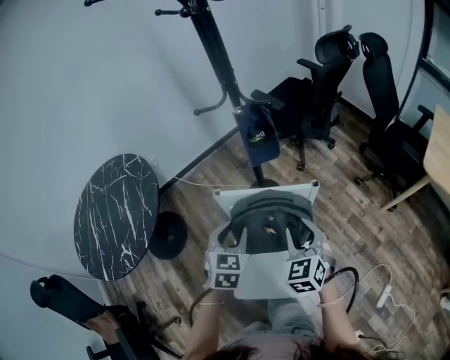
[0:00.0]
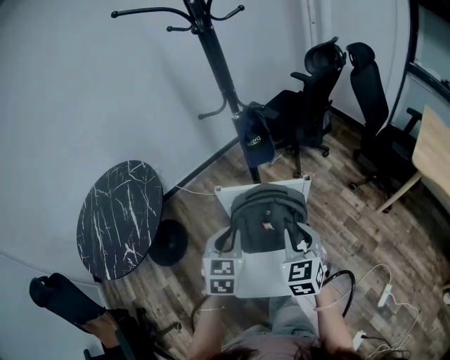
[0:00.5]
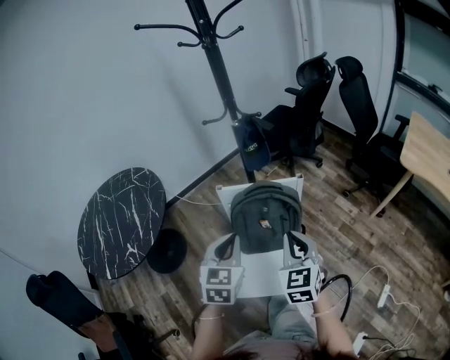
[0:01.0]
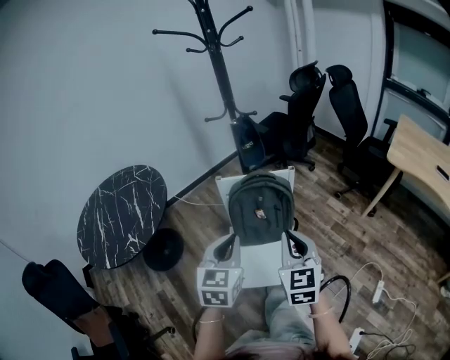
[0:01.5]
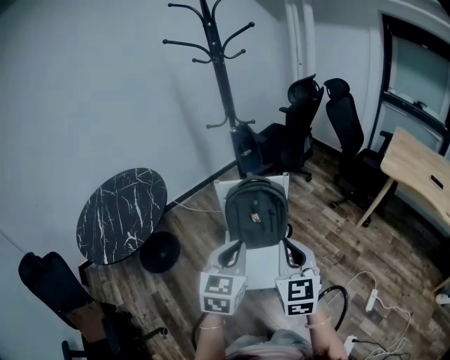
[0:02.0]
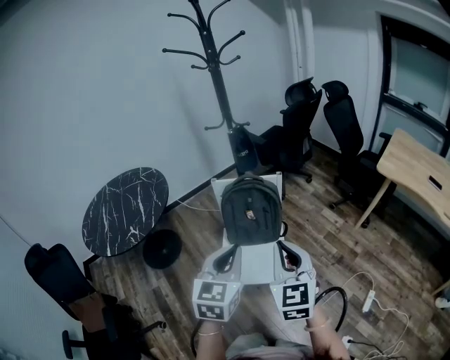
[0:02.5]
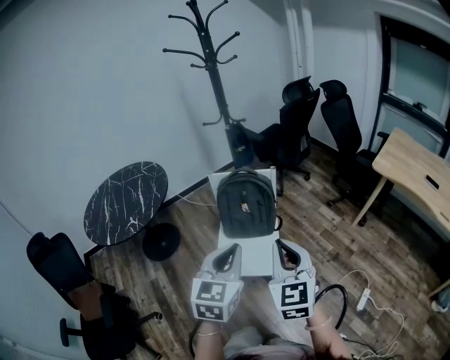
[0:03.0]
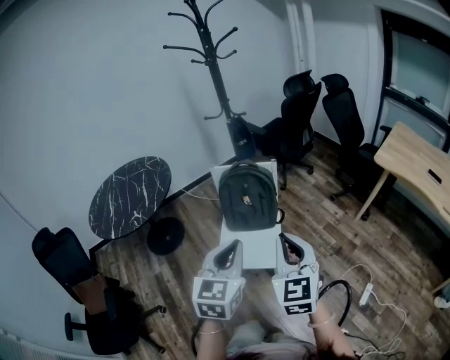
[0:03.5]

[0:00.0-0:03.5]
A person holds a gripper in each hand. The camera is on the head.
0:00.0 to 0:02.0: Both grippers travel together backward and upward, approximately 35 cm. The left gripper closes its fingers, while the right gripper turns by some 30 degrees, and closes up.
0:02.0 to 0:03.5: The two grippers go roughly 15 cm backward and to the right.

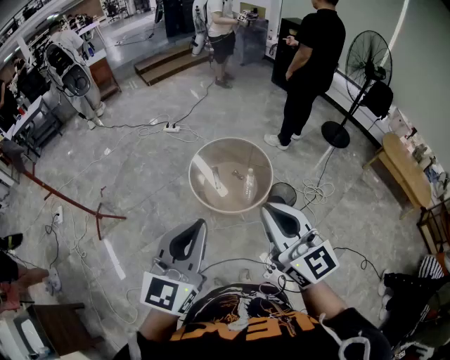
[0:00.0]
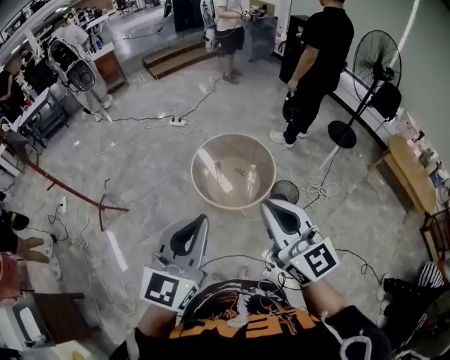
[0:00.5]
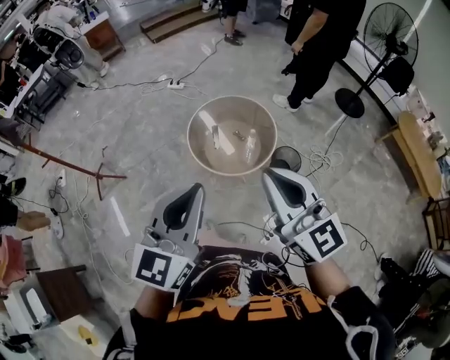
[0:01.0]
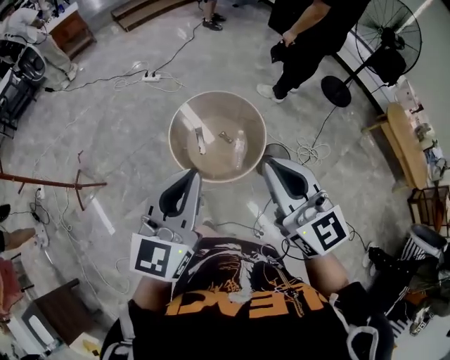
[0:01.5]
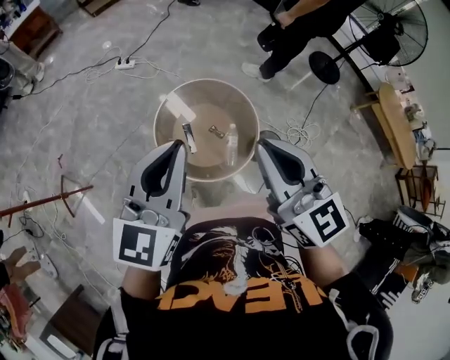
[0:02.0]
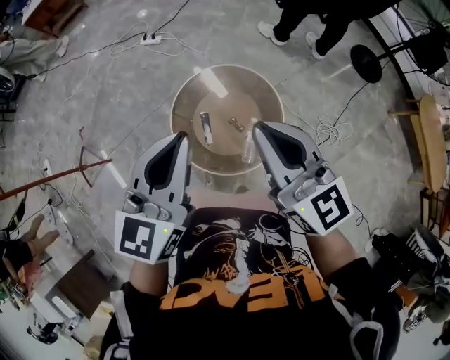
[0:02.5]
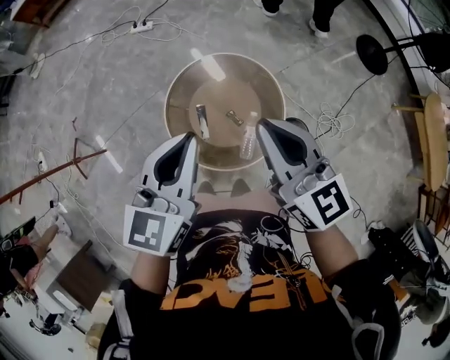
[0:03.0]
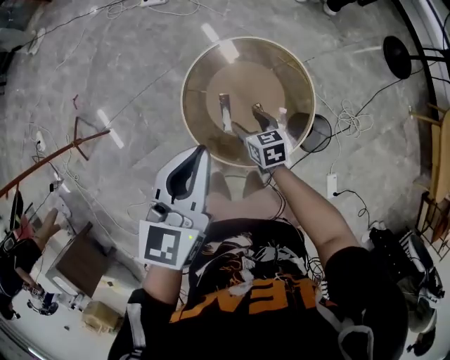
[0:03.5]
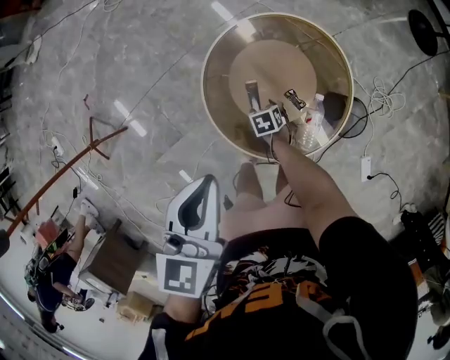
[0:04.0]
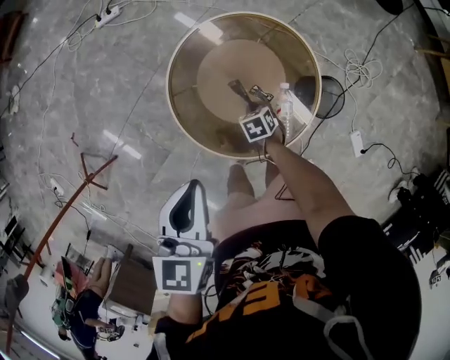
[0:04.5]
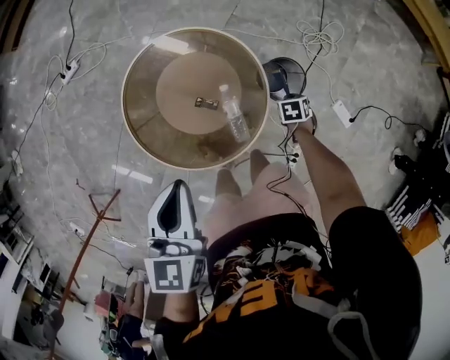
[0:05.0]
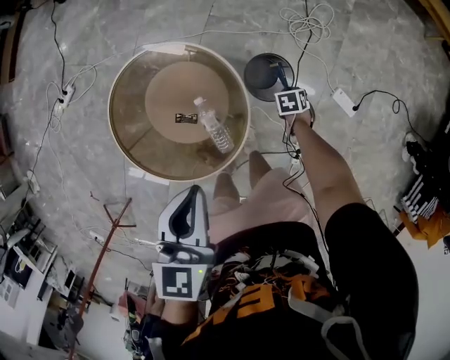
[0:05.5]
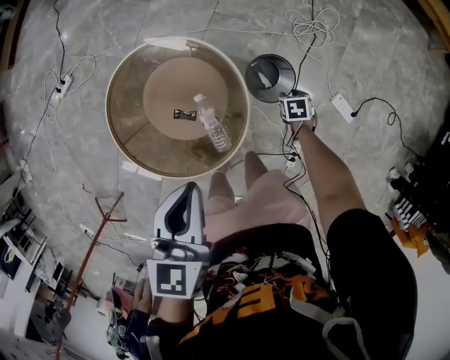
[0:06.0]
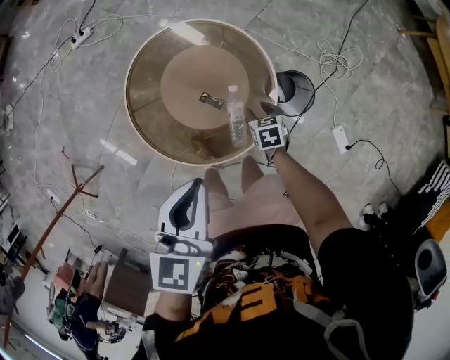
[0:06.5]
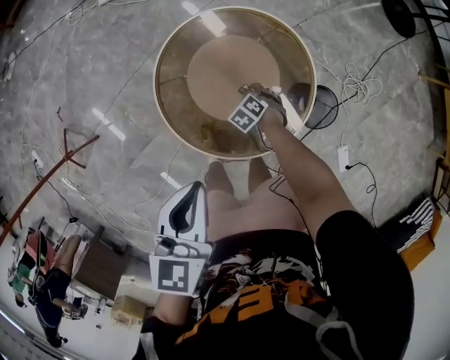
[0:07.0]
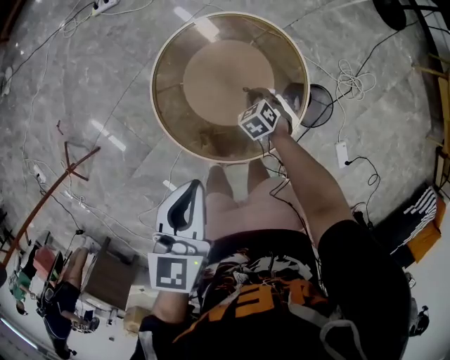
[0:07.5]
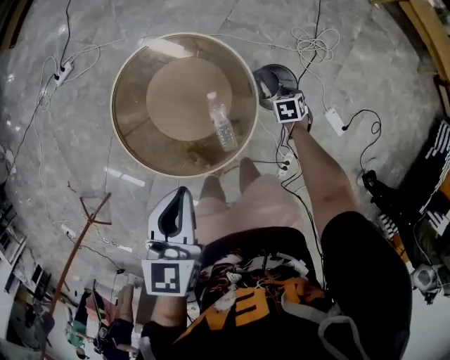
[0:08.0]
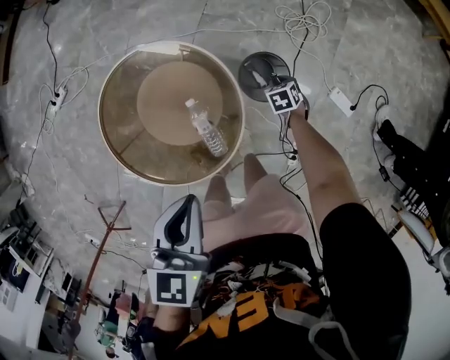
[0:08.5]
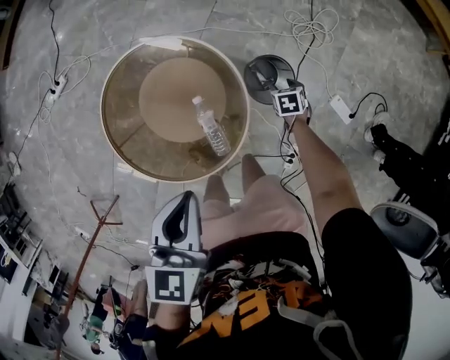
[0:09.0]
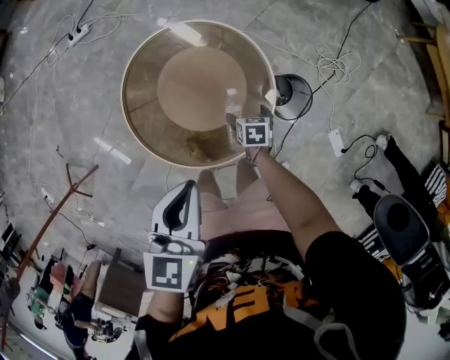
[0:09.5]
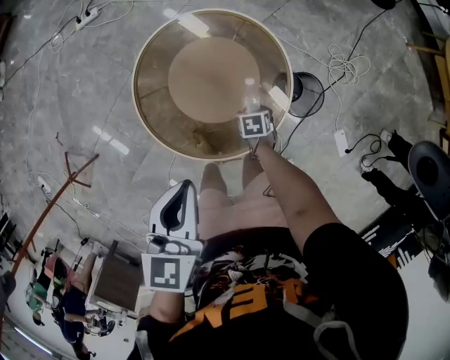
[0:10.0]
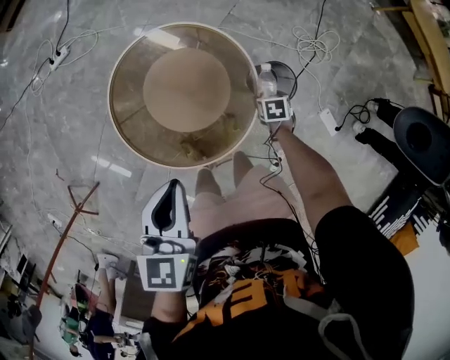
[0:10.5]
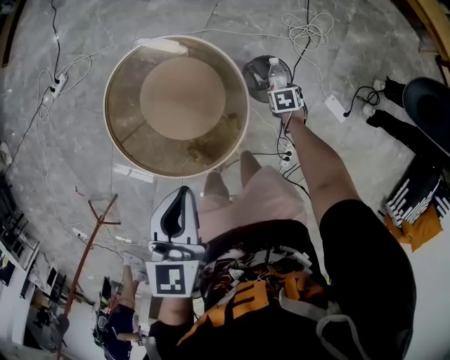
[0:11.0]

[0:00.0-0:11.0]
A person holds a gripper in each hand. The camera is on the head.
0:00.0 to 0:02.0: Both grippers move forward, approximately 40 cm.
0:02.0 to 0:03.5: The right gripper goes about 50 cm downward, points its fingers approximately 40 degrees further downward, and opens its fingers, while the left gripper moves downward and forward, some 25 cm, and changes its angle by roughly 30 degrees.
0:03.5 to 0:05.5: The right gripper goes up and down, approximately 25 cm each way, reversing 2 times, angles its fingers downward, by about 40 degrees, and closes up; the left gripper ends up about 30 cm from where it was, and changes its angle by about 40 degrees.
0:05.5 to 0:07.5: The right gripper swings up and down, roughly 5 cm each way, with 2 reversals, and twists approximately 50 degrees counterclockwise, seen from behind. The left gripper changes place by about 25 cm, and turns by approximately 30 degrees.
0:07.5 to 0:09.0: The left gripper changes place by roughly 25 cm, and swivels some 20 degrees, while the right gripper shifts by approximately 40 cm, rotates around the line of its fingers by some 50 degrees, clockwise from behind, and opens.

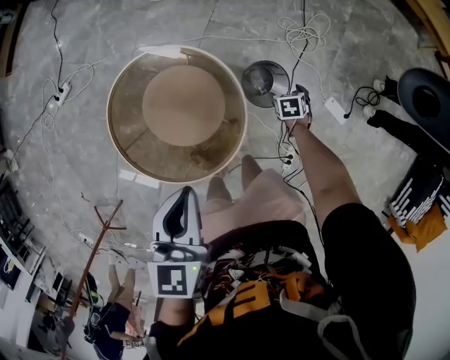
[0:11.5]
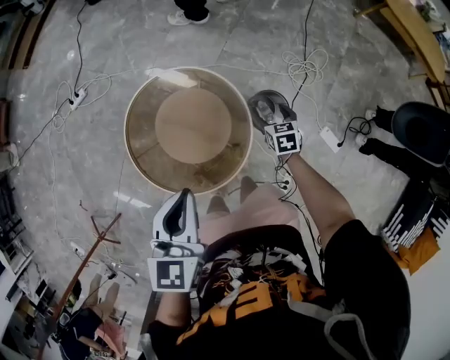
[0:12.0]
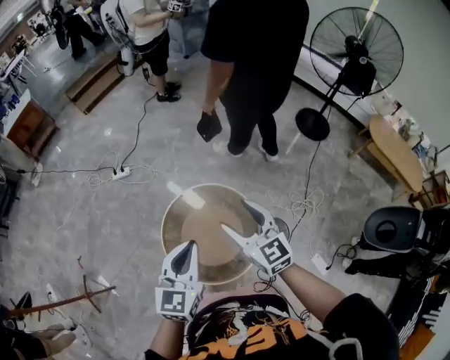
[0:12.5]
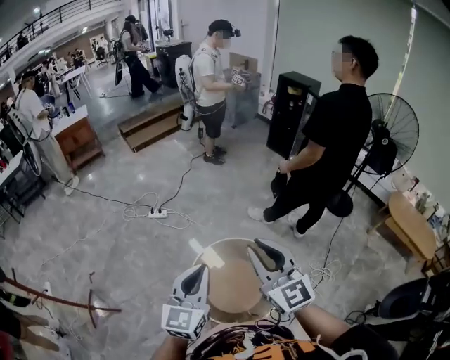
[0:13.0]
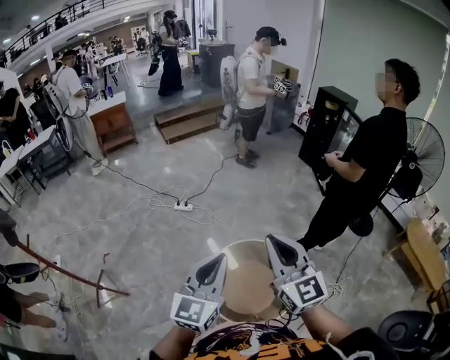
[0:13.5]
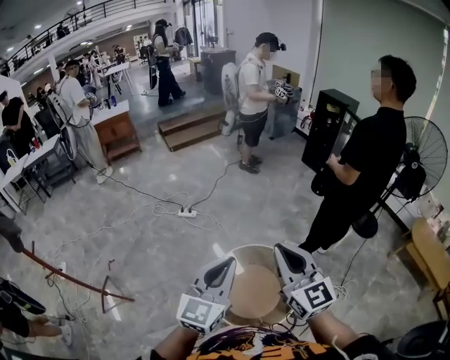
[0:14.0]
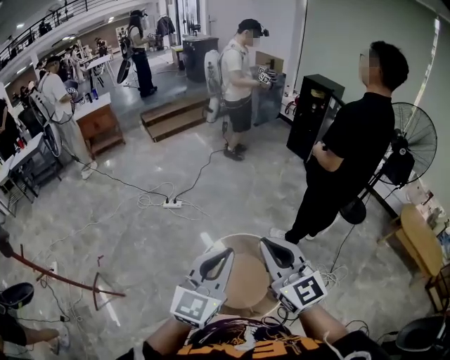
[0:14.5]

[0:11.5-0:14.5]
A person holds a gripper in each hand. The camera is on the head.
0:11.5 to 0:13.0: The right gripper heads upward, covering roughly 80 cm, tilts its fingers approximately 80 degrees upward, and closes its fingers. Meanwhile the left gripper goes approximately 30 cm upward, and tips its fingers upward by roughly 40 degrees.
0:13.0 to 0:14.5: The left gripper shifts approximately 5 cm upward.

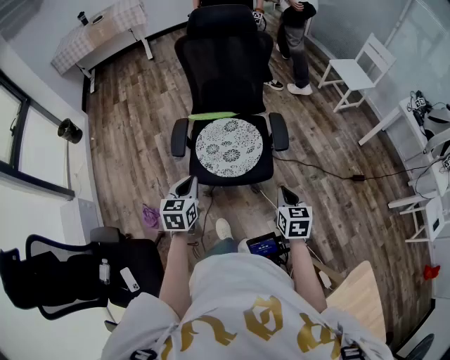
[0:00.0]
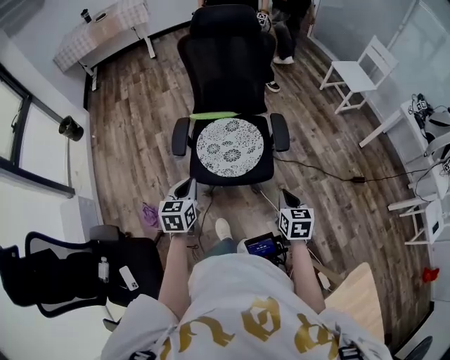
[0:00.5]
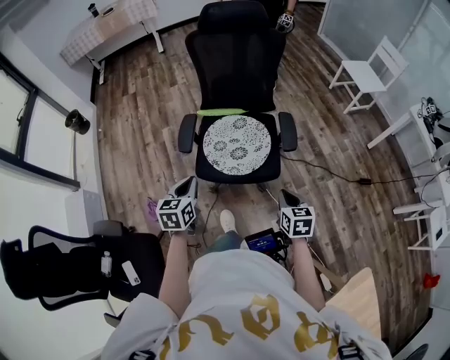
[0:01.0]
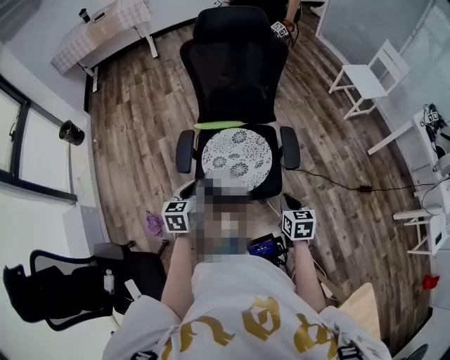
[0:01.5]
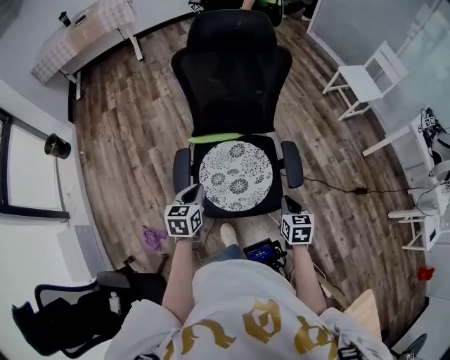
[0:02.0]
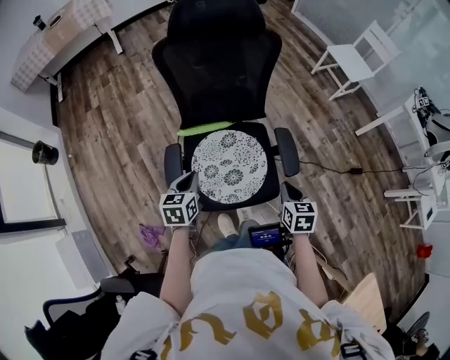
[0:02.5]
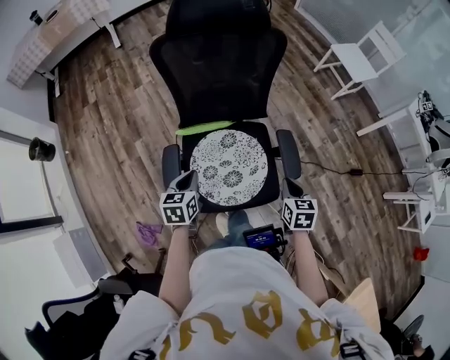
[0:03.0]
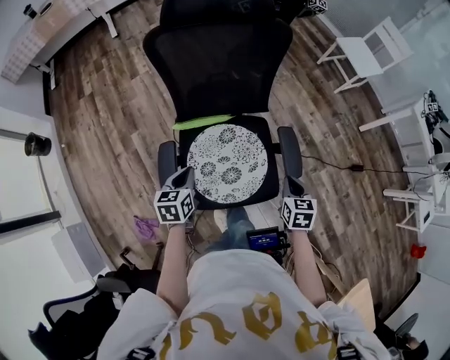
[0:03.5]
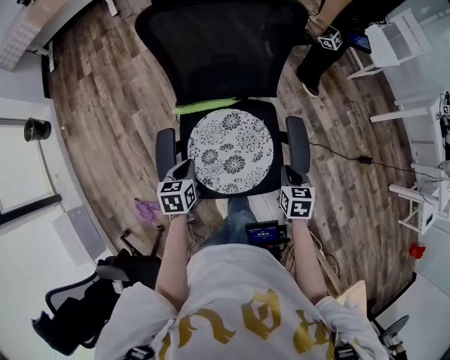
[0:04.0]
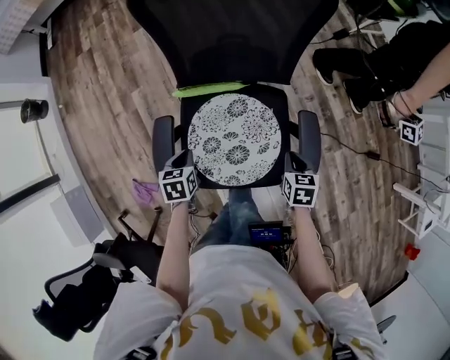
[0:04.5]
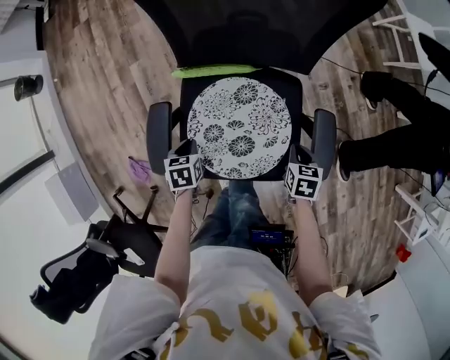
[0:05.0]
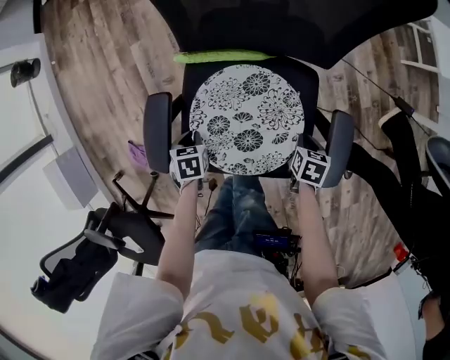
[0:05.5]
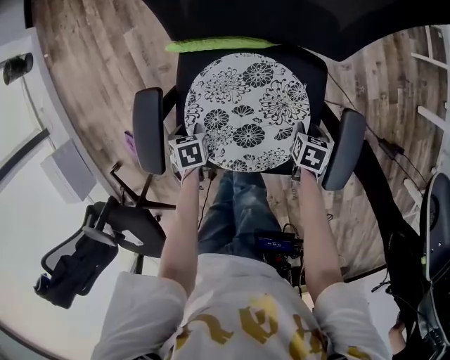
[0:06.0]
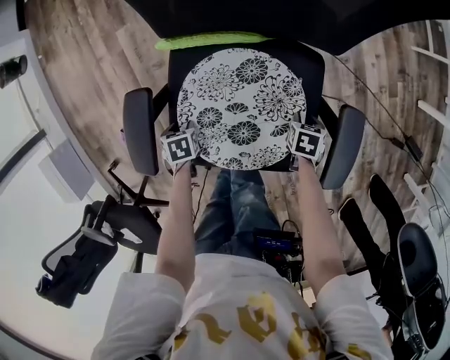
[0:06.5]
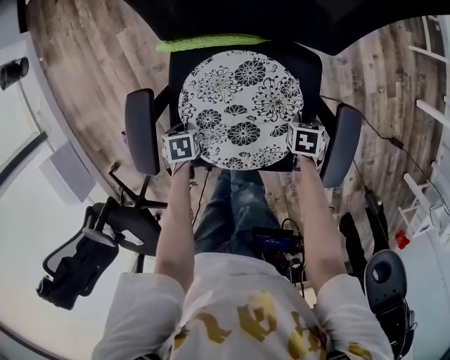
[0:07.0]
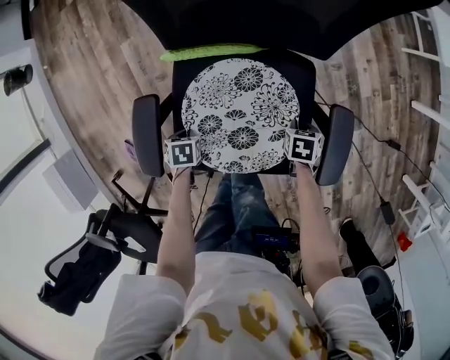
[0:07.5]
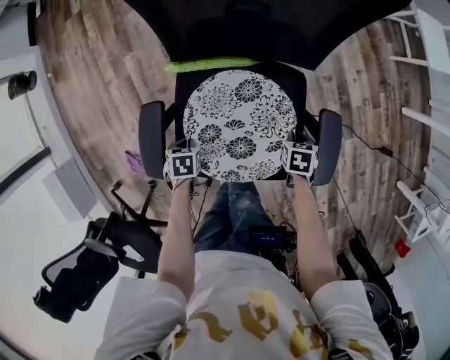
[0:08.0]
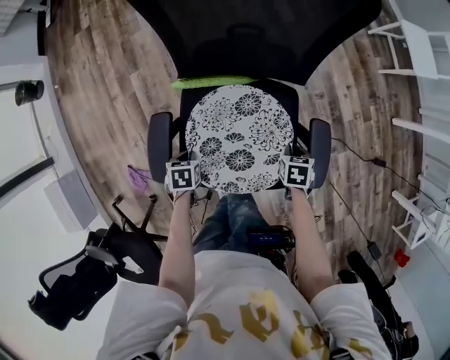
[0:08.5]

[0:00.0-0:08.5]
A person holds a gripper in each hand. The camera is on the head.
0:00.0 to 0:02.0: Both grippers move forward, about 20 cm.
0:02.0 to 0:04.0: The right gripper goes approximately 15 cm forward and downward; the left gripper shifts some 15 cm downward and forward.
0:04.0 to 0:06.5: The two grippers go about 30 cm downward. The right gripper changes its angle by roughly 30 degrees. Meanwhile the left gripper points its fingers approximately 40 degrees further downward, and opens its fingers.
0:06.5 to 0:08.5: Both grippers travel together upward, some 15 cm. The left gripper closes up.
